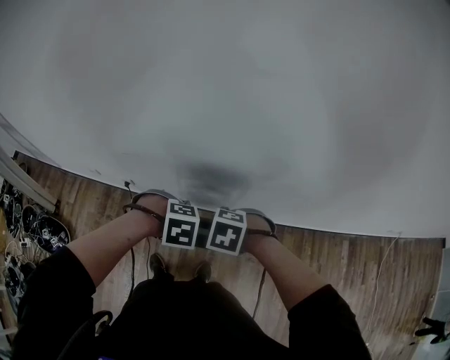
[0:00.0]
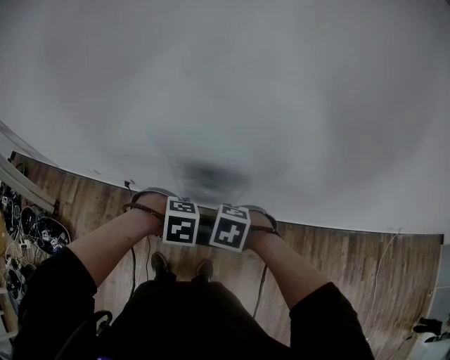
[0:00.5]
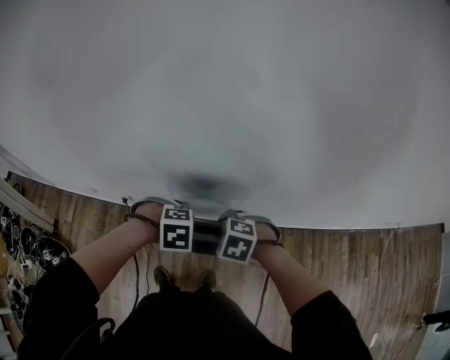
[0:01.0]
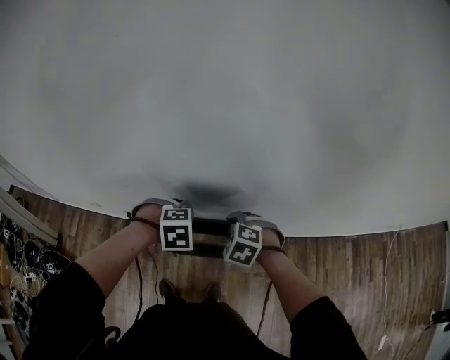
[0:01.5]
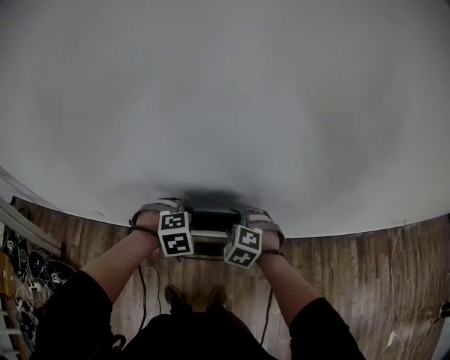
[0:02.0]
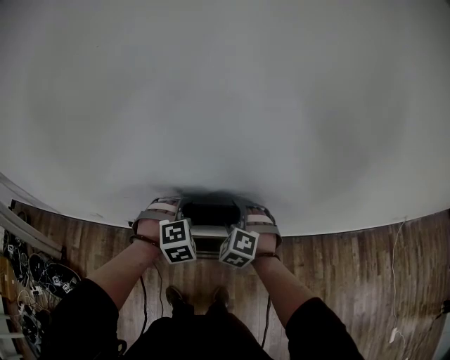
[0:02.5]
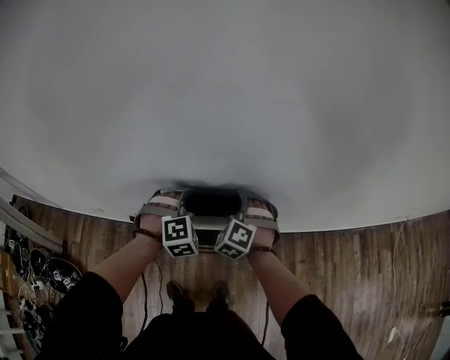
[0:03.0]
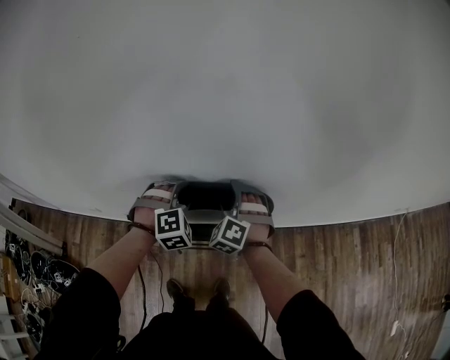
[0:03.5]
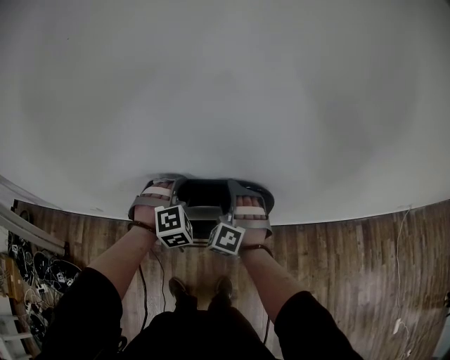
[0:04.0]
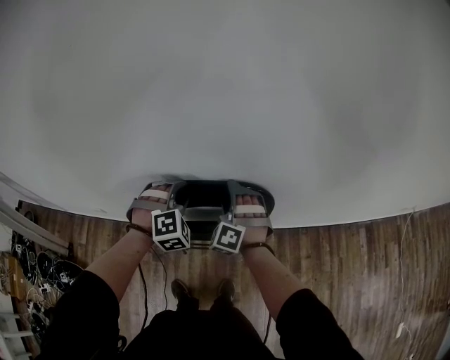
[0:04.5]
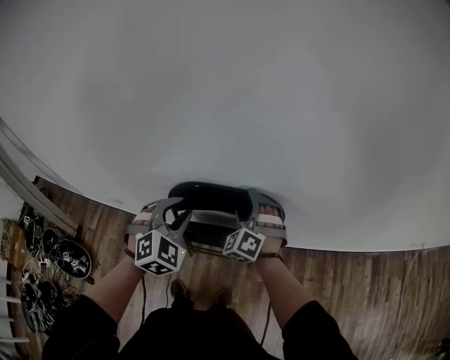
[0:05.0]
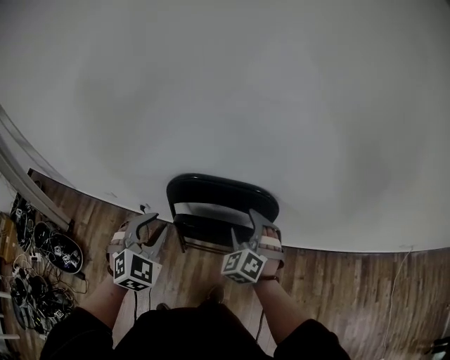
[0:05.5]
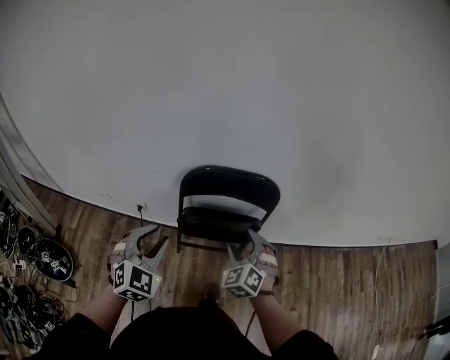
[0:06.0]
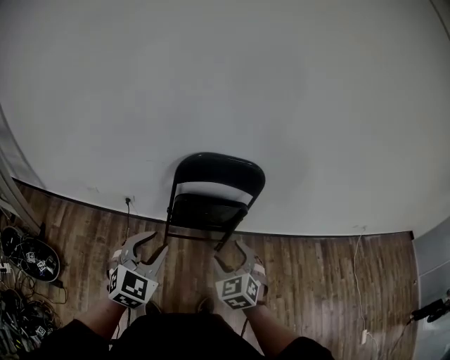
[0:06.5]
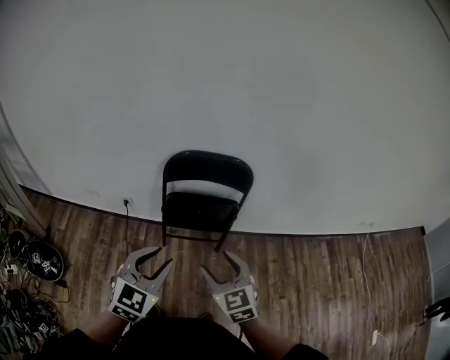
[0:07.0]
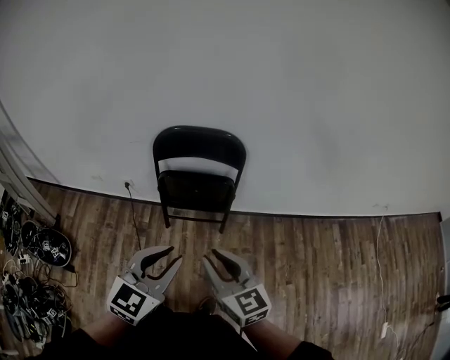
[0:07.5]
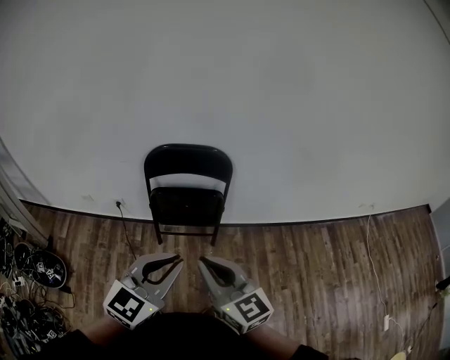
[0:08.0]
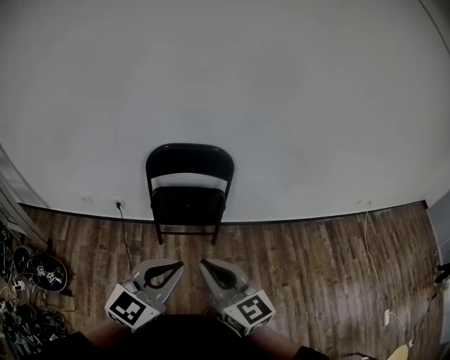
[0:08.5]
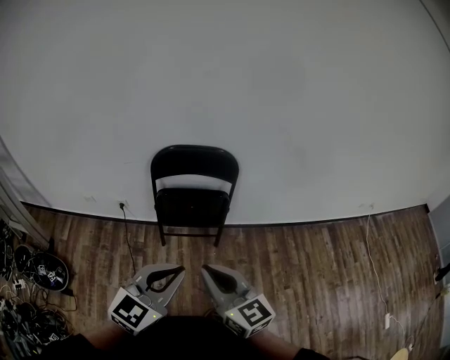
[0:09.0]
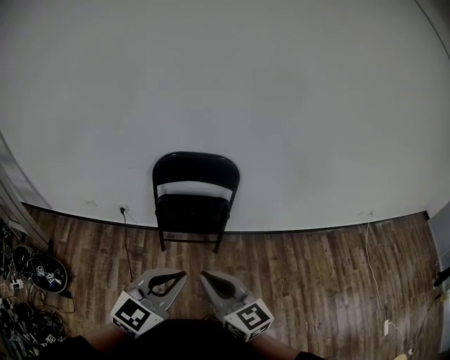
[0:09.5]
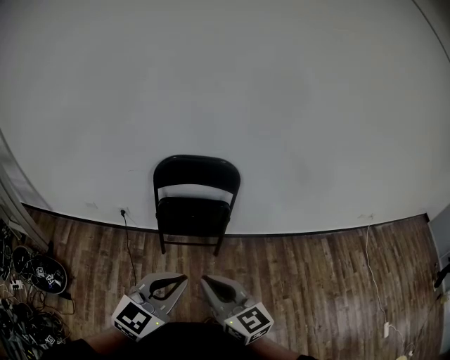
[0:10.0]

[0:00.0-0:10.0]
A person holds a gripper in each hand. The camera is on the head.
0:00.0 to 0:02.0: The right gripper moves approximately 15 cm, swivels approximately 40 degrees, and opens. The left gripper changes place by roughly 15 cm, and swivels some 20 degrees.
0:02.0 to 0:04.0: Both grippers travel together forward, some 5 cm. The left gripper turns by about 20 degrees. Meanwhile the right gripper swivels some 30 degrees.
0:04.0 to 0:06.0: The left gripper shifts approximately 30 cm backward and to the left, and turns by some 40 degrees; the right gripper travels backward by roughly 25 cm, and changes its angle by approximately 20 degrees.
0:06.0 to 0:08.0: The left gripper travels to the right, backward and upward by about 30 cm, and rotates about 40 degrees. The right gripper moves backward and upward, about 30 cm, changes its angle by some 60 degrees, and closes up.
0:08.0 to 0:10.0: The right gripper ends up roughly 5 cm from where it was.

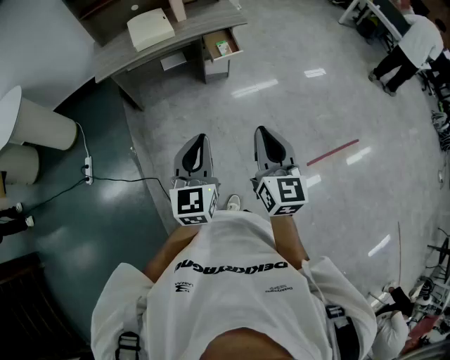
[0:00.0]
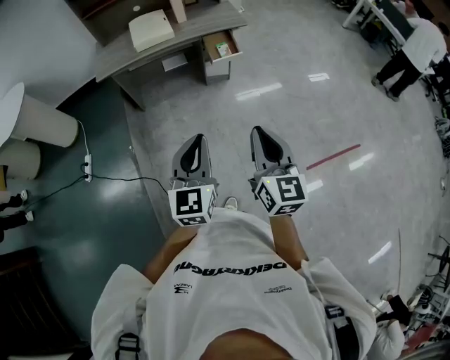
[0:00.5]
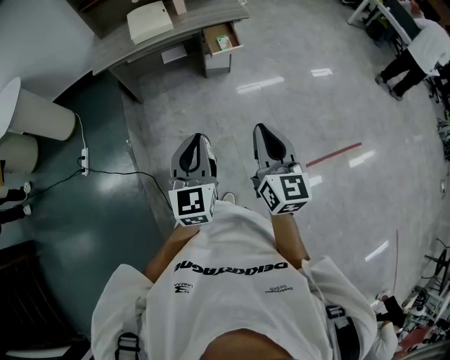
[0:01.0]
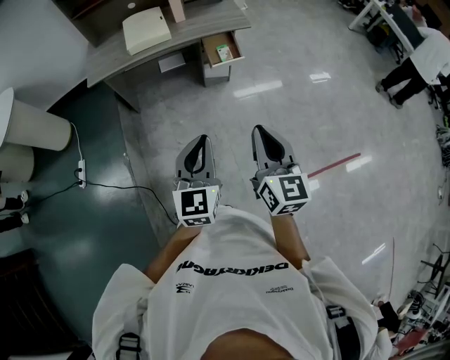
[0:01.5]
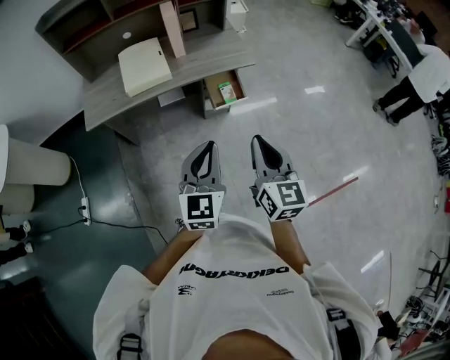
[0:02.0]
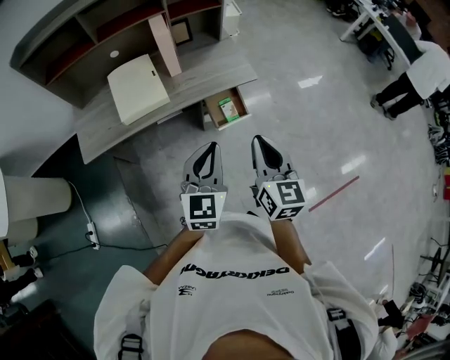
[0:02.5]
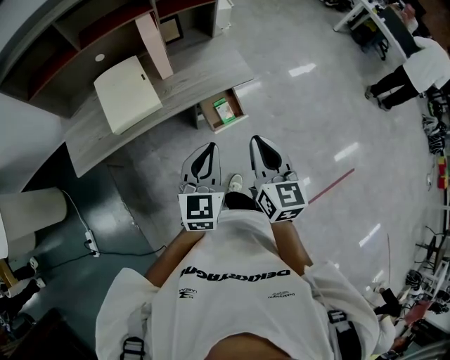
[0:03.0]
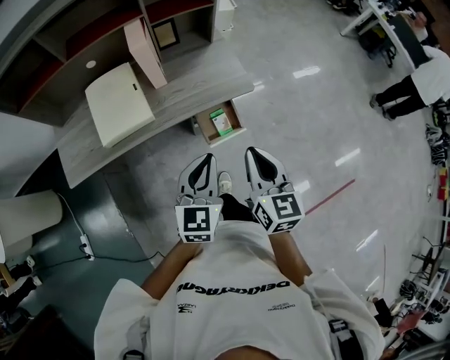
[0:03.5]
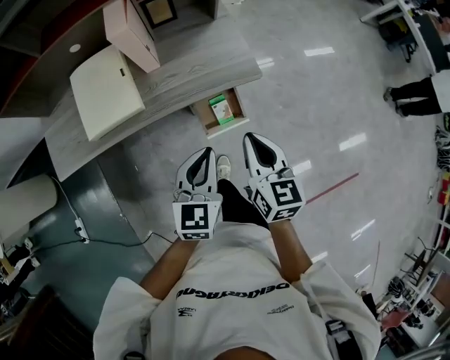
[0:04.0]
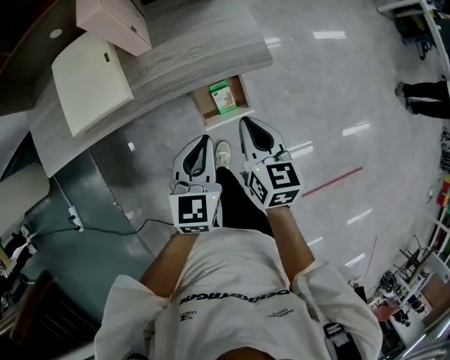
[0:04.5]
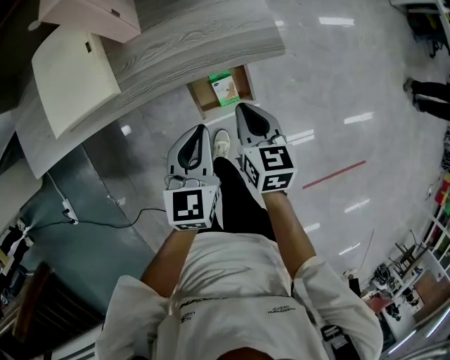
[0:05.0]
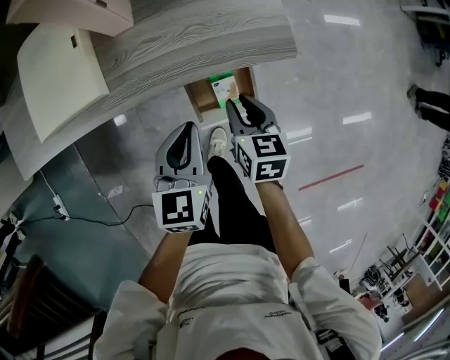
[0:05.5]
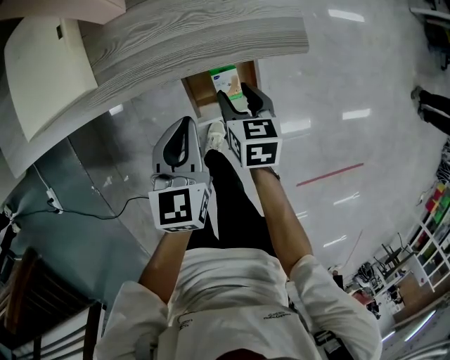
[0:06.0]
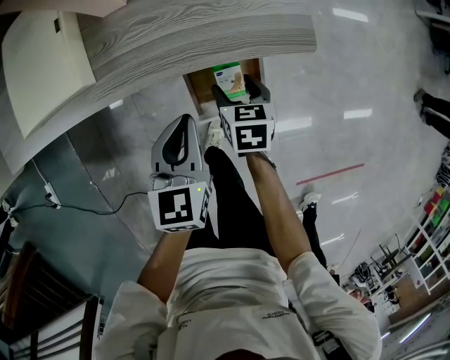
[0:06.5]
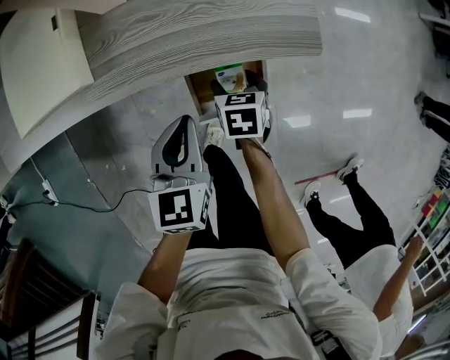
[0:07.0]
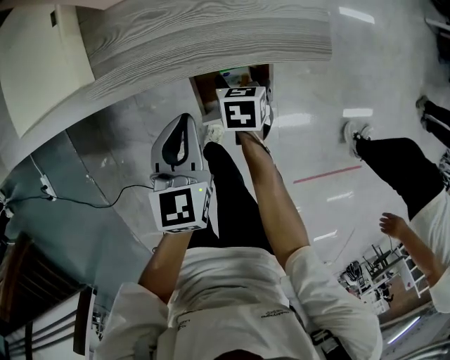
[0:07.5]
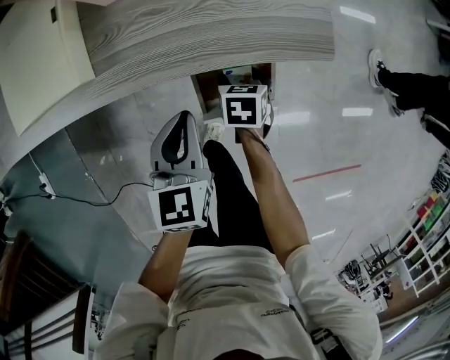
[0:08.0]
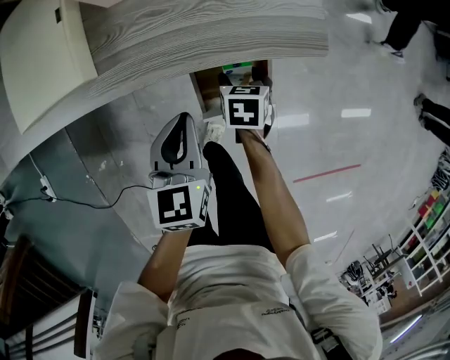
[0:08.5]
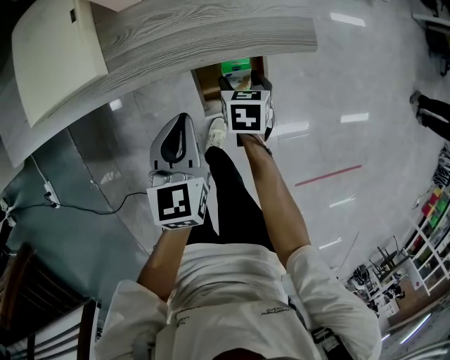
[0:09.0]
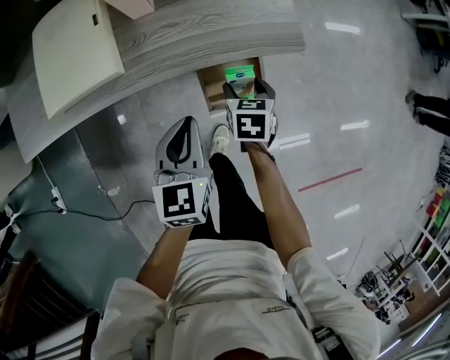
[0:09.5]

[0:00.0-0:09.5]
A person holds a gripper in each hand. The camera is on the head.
0:00.0 to 0:02.0: The grippers both shift forward by approximately 35 cm.
0:02.0 to 0:04.0: Both grippers travel together forward and downward, approximately 35 cm.
0:04.0 to 0:05.5: The left gripper is displaced downward and forward by about 20 cm. Meanwhile the right gripper shifts approximately 30 cm downward, and turns by roughly 20 degrees.
0:05.5 to 0:07.5: The right gripper heads downward, covering some 15 cm, swivels approximately 20 degrees, and opens; the left gripper shifts about 5 cm downward.
0:07.5 to 0:09.5: Both grippers move upward, about 10 cm.

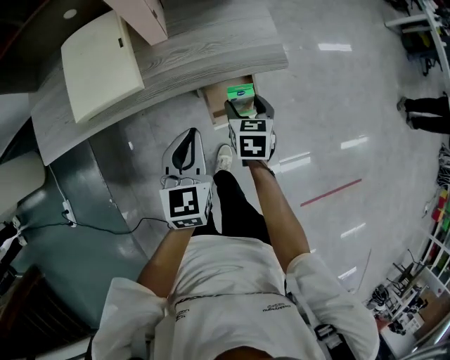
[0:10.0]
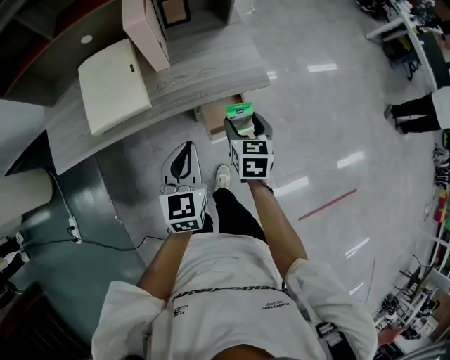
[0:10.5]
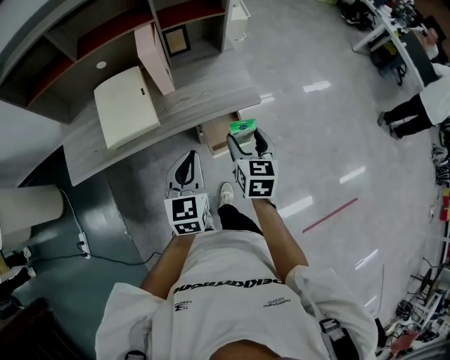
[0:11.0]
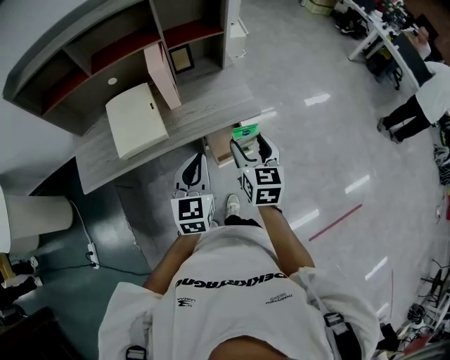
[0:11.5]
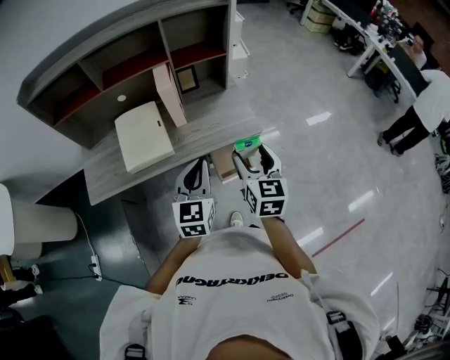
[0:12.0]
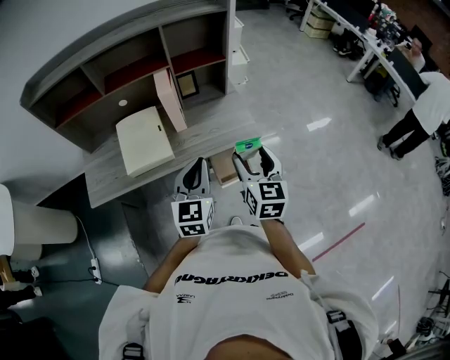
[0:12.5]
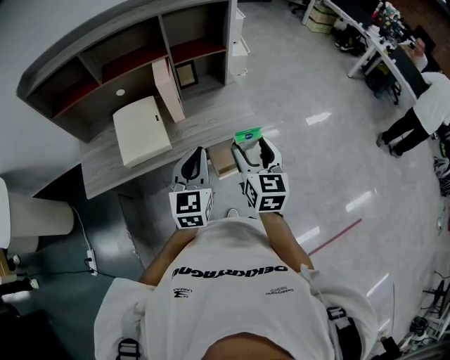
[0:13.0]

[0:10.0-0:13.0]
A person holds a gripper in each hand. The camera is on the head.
0:10.0 to 0:11.5: The right gripper shifts approximately 30 cm upward, and rotates about 30 degrees, while the left gripper is displaced upward by approximately 20 cm.
0:11.5 to 0:13.0: Both grippers travel together upward, some 5 cm.

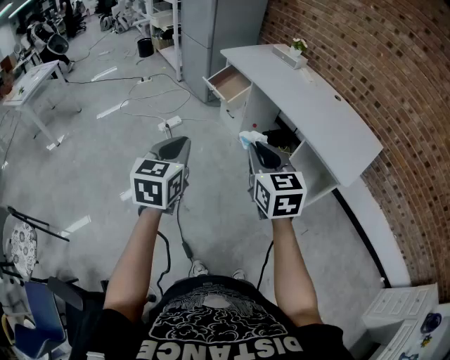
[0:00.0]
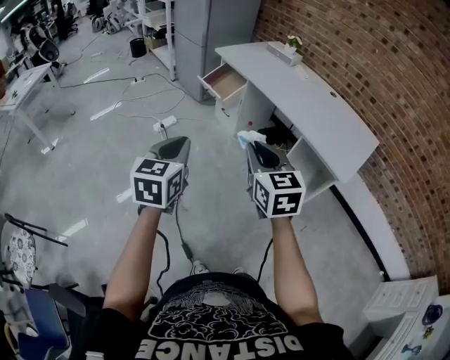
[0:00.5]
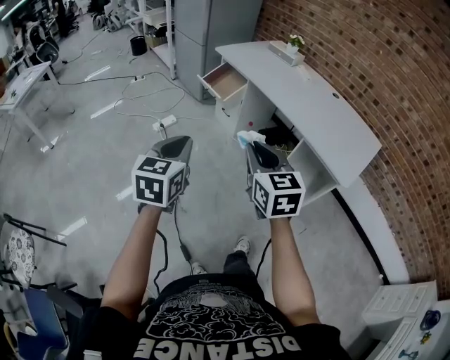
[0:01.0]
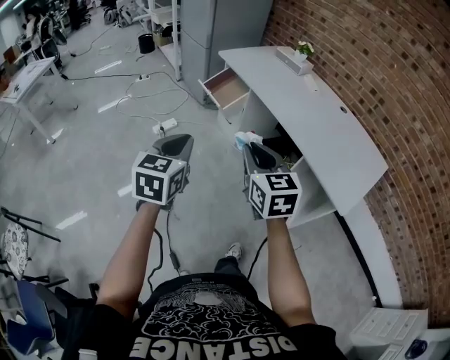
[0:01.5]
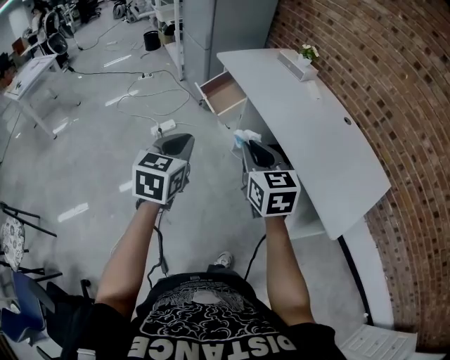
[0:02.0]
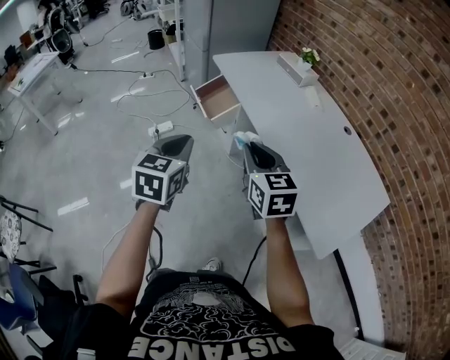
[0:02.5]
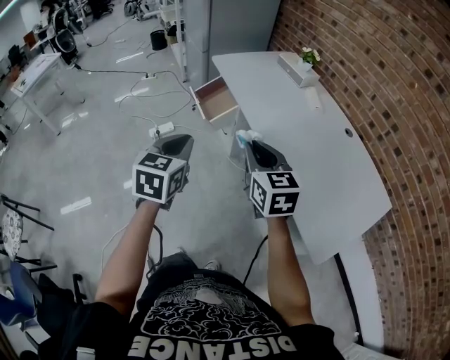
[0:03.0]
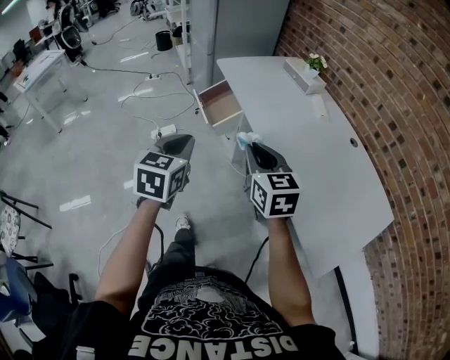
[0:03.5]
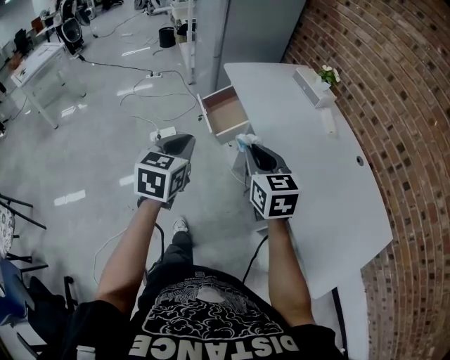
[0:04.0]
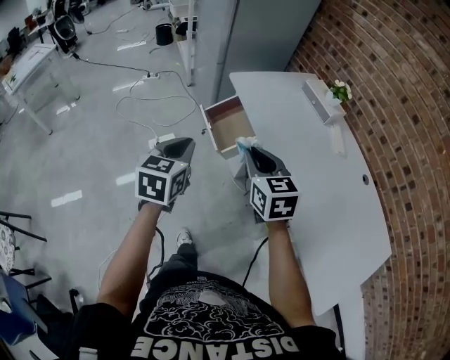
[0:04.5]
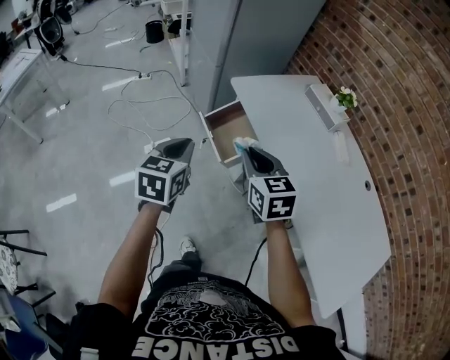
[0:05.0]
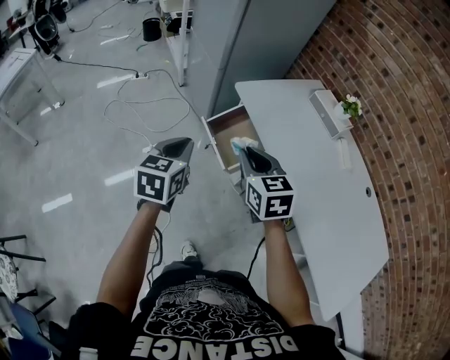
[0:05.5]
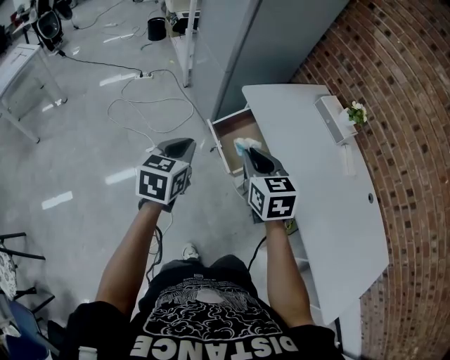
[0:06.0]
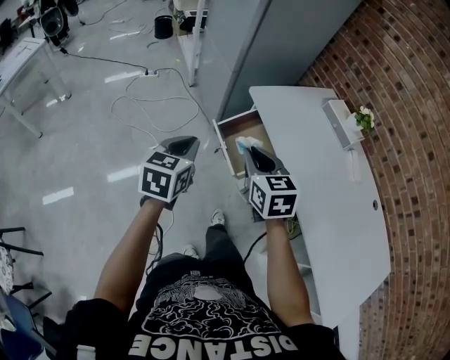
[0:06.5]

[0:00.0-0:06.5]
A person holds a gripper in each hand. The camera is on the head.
0:00.0 to 0:02.0: The two grippers go approximately 25 cm forward and to the right.
0:02.0 to 0:04.5: The grippers both shift forward by some 30 cm.
0:04.5 to 0:06.5: Both grippers move forward and to the left, approximately 20 cm.
